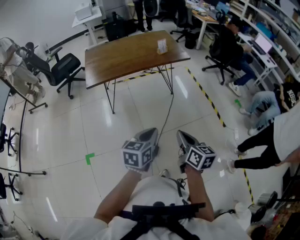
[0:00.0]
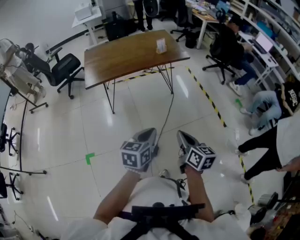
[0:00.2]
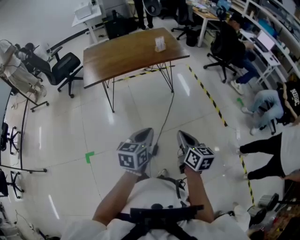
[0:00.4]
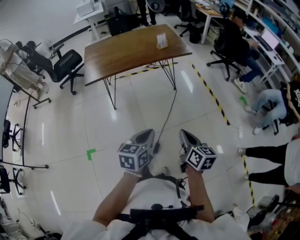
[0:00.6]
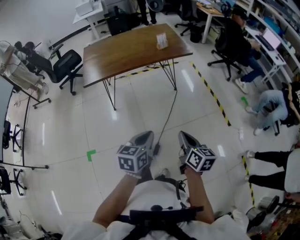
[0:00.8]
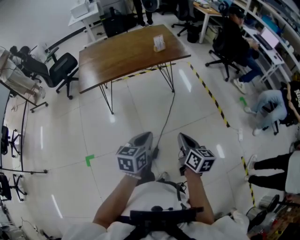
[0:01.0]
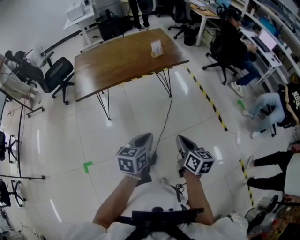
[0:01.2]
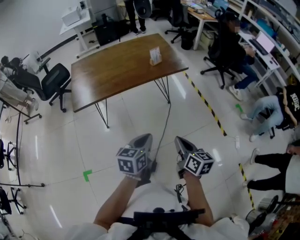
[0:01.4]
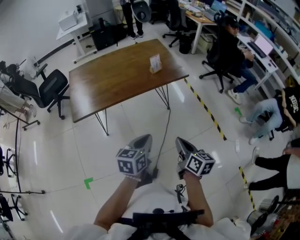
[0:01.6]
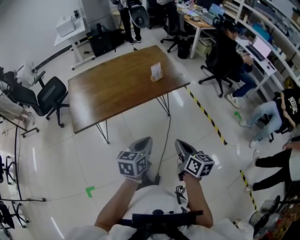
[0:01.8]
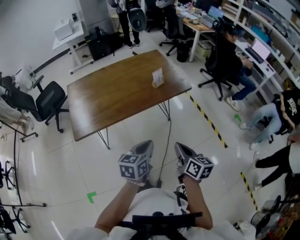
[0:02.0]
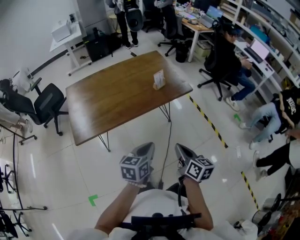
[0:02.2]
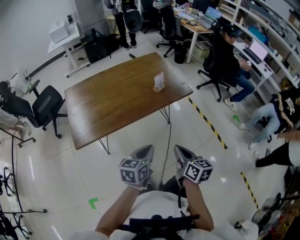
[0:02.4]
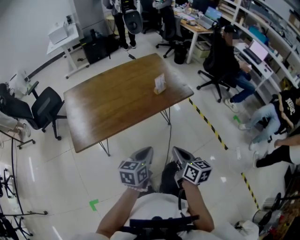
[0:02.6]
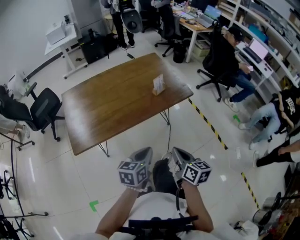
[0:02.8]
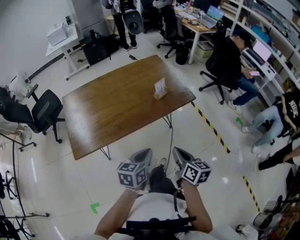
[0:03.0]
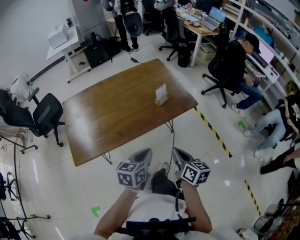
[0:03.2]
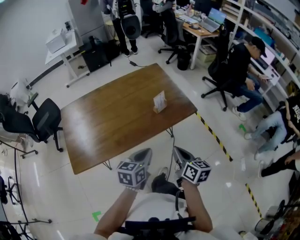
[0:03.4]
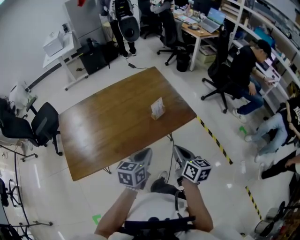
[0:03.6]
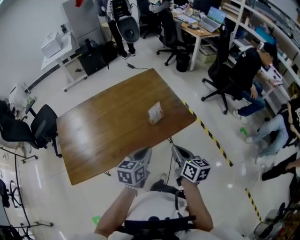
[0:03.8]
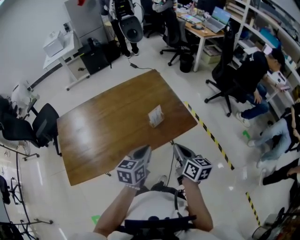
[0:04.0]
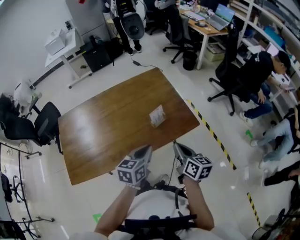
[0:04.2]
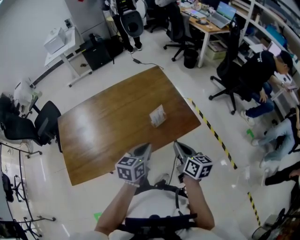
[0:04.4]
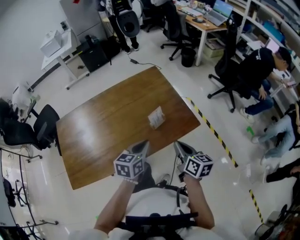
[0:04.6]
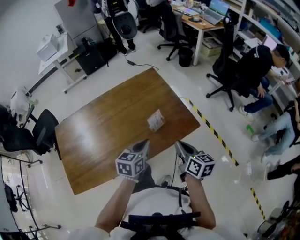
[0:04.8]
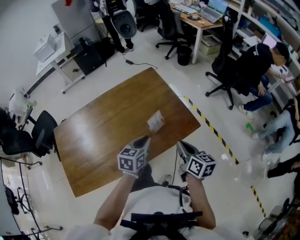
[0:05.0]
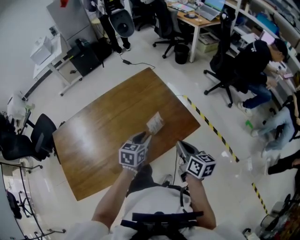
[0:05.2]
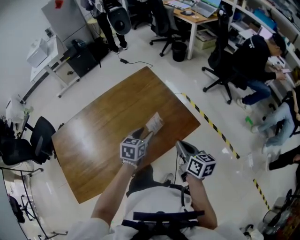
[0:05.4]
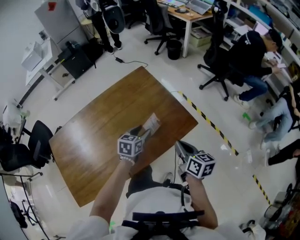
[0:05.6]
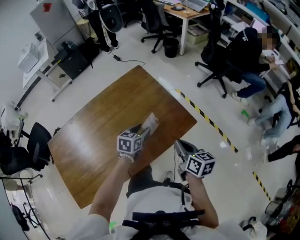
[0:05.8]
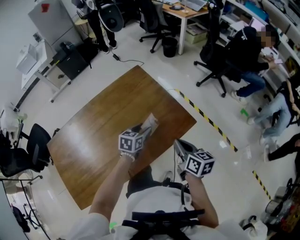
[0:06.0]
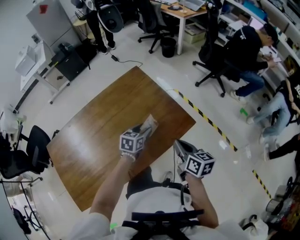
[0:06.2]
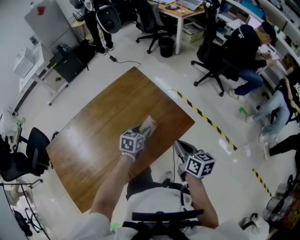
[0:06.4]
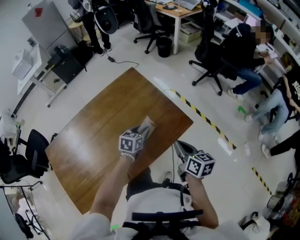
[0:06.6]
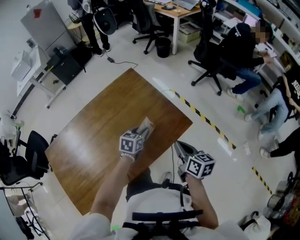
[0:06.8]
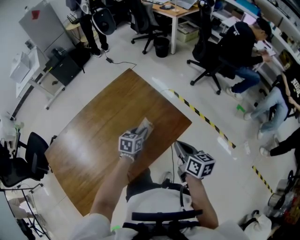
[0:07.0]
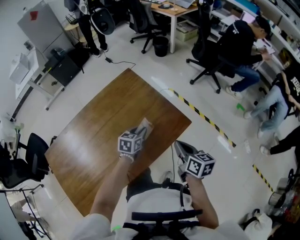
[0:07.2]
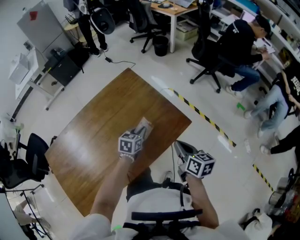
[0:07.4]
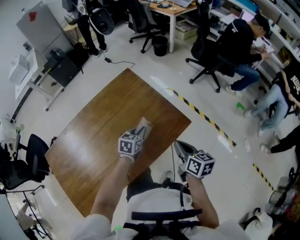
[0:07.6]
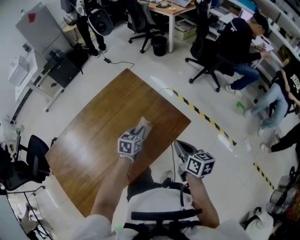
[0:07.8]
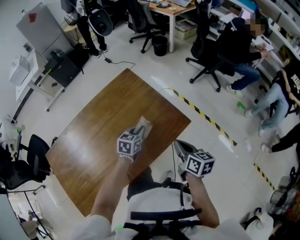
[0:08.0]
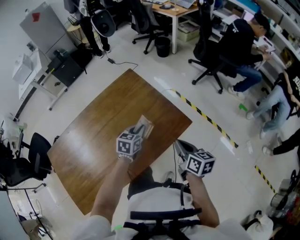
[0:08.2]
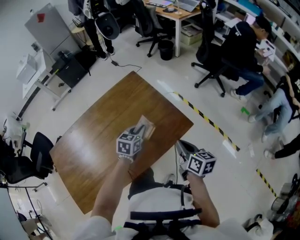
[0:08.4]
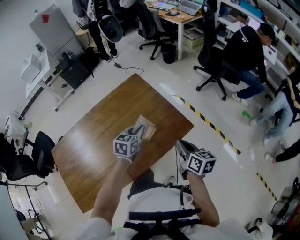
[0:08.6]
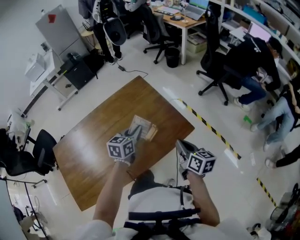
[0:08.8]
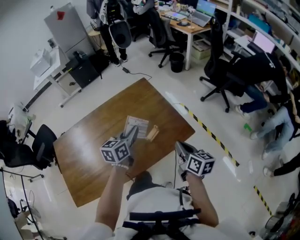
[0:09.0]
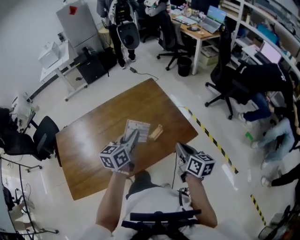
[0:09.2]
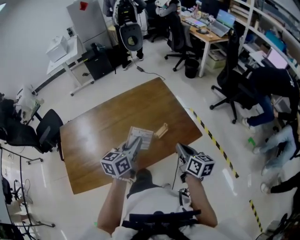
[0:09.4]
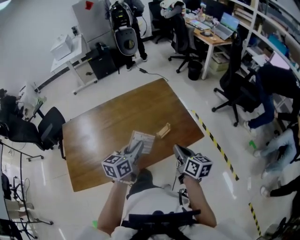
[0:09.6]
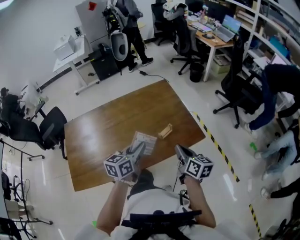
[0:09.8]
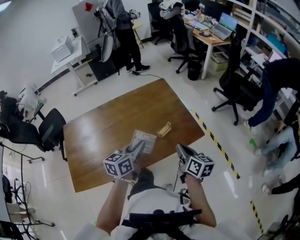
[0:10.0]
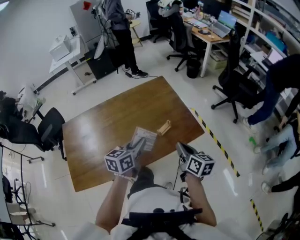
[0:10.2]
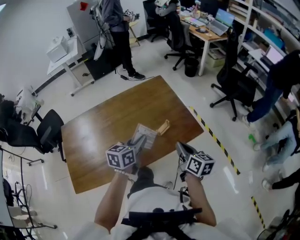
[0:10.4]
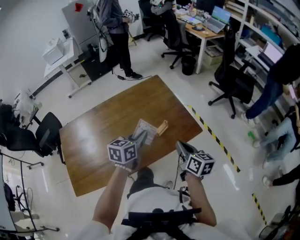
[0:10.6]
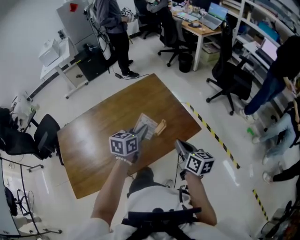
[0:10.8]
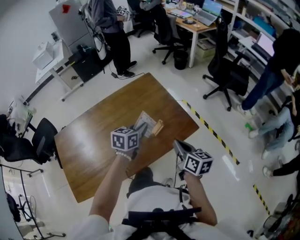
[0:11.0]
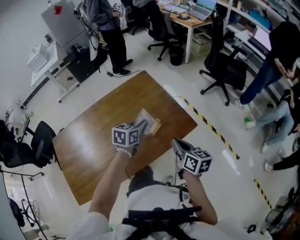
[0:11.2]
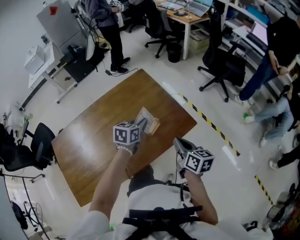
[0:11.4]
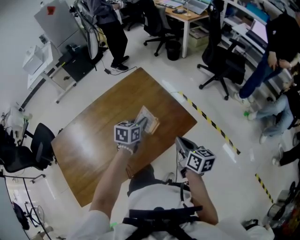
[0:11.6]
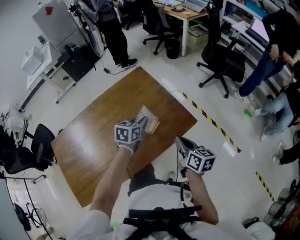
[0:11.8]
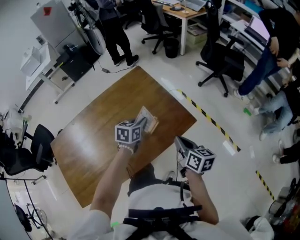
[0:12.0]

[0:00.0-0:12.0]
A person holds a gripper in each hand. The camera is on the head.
0:00.0 to 0:01.6: Both grippers travel together forward, approximately 25 cm.
0:01.6 to 0:03.0: The grippers both shift forward and to the left by some 20 cm.
0:03.0 to 0:04.4: The two grippers go roughly 25 cm forward.
0:04.4 to 0:06.0: The left gripper moves forward and downward, some 20 cm, and opens up; the right gripper is displaced forward by about 5 cm.
0:06.0 to 0:07.6: The left gripper closes.
0:07.6 to 0:09.0: The left gripper goes some 15 cm upward, and changes its angle by about 30 degrees.
0:09.0 to 0:10.4: The right gripper is displaced to the left by approximately 5 cm, while the left gripper travels backward by approximately 10 cm.
0:10.4 to 0:12.0: The left gripper goes some 20 cm forward and downward, and changes its angle by approximately 20 degrees. The right gripper moves some 5 cm.

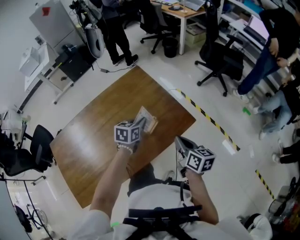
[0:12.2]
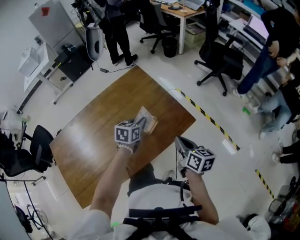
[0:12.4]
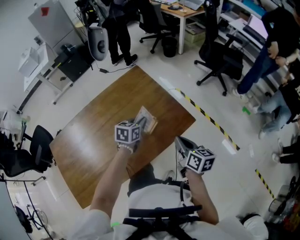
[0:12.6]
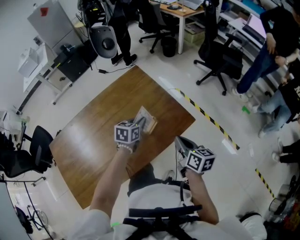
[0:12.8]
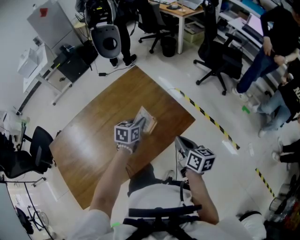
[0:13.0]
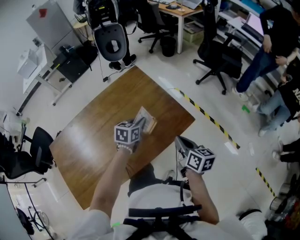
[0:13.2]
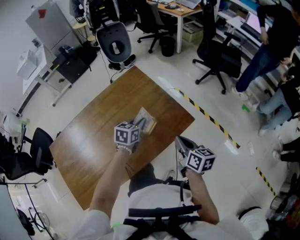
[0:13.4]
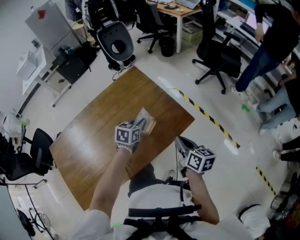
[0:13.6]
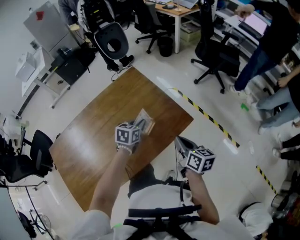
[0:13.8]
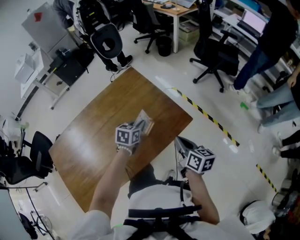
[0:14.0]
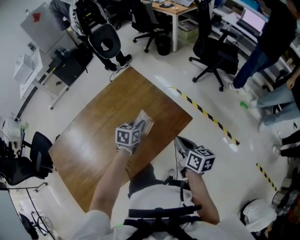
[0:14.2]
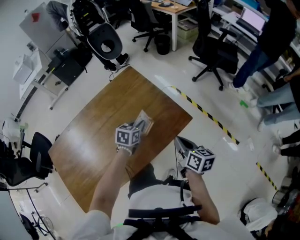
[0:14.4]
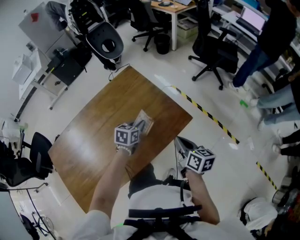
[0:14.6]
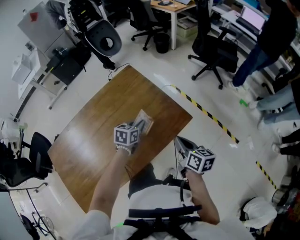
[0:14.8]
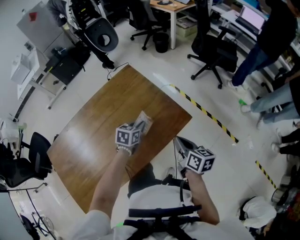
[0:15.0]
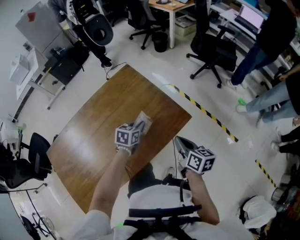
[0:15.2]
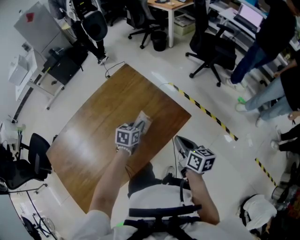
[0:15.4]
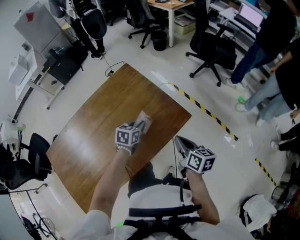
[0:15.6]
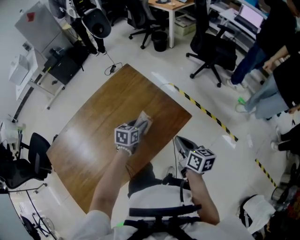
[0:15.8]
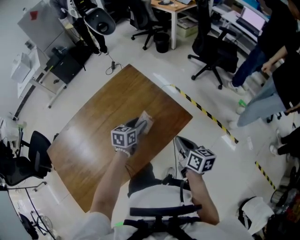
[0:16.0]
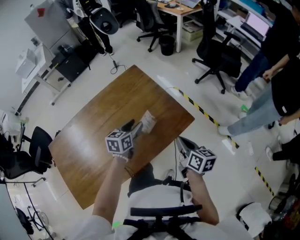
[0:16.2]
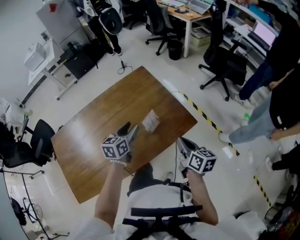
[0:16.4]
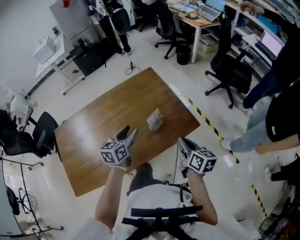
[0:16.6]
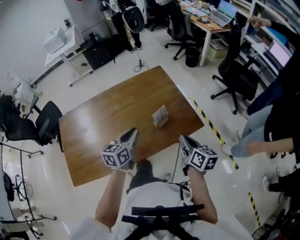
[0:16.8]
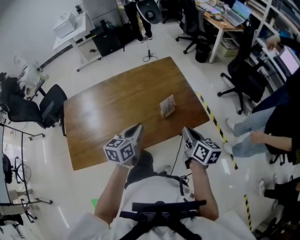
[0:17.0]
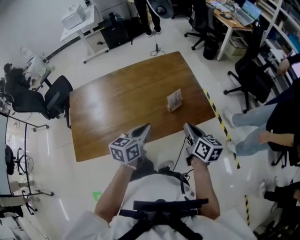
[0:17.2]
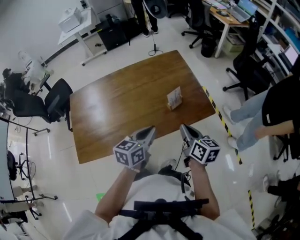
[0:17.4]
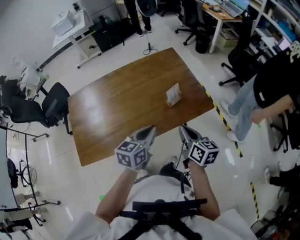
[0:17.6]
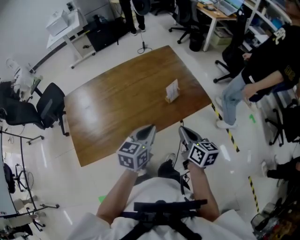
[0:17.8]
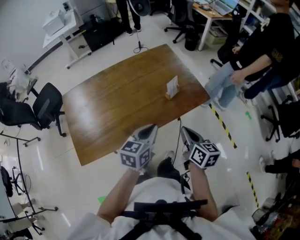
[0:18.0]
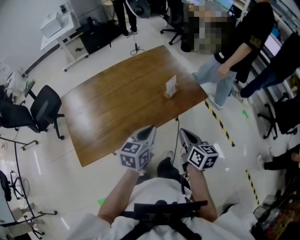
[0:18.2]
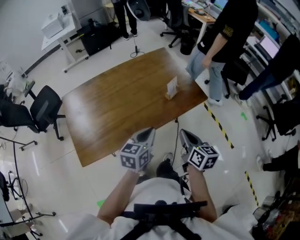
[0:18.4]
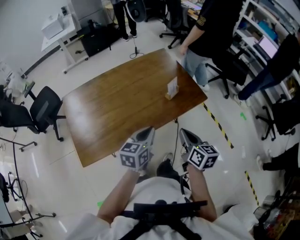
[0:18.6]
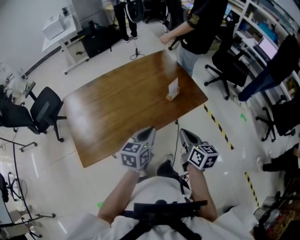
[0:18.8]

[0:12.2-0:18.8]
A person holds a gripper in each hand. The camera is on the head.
0:12.2 to 0:15.4: There are only small adjustments of the grippers.
0:15.4 to 0:17.2: The left gripper travels backward and upward by some 25 cm, rotates some 40 degrees, and opens and closes again. Meanwhile the right gripper heads to the left and upward, covering some 10 cm, and swivels approximately 20 degrees.
0:17.2 to 0:18.8: The two grippers go some 15 cm backward and to the left.

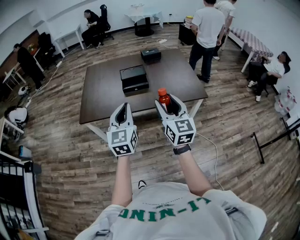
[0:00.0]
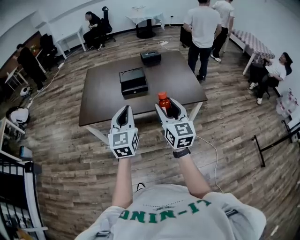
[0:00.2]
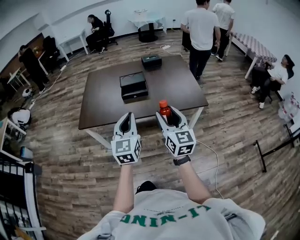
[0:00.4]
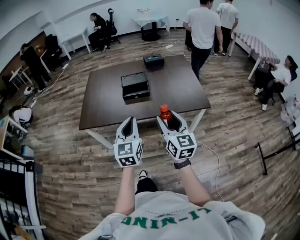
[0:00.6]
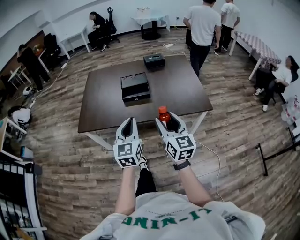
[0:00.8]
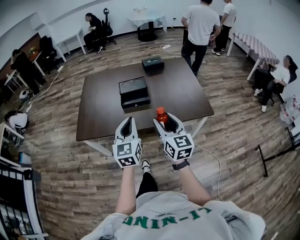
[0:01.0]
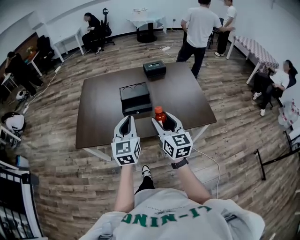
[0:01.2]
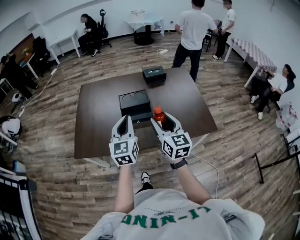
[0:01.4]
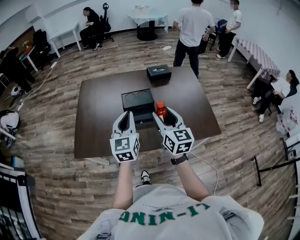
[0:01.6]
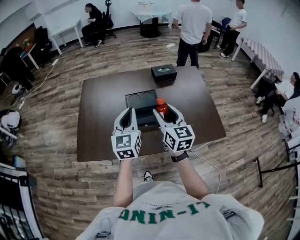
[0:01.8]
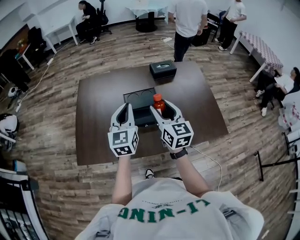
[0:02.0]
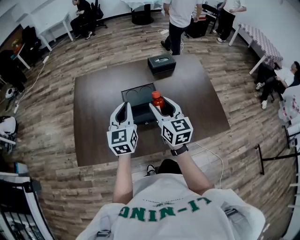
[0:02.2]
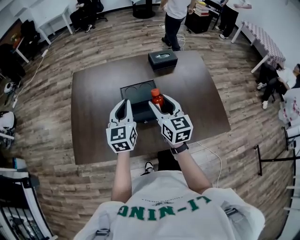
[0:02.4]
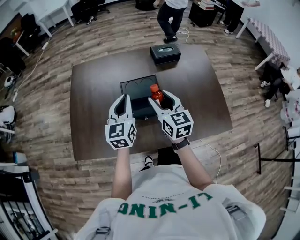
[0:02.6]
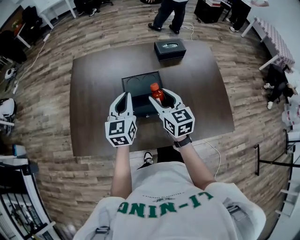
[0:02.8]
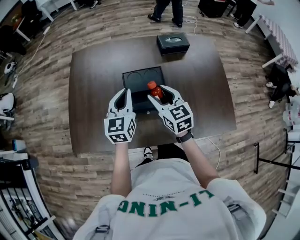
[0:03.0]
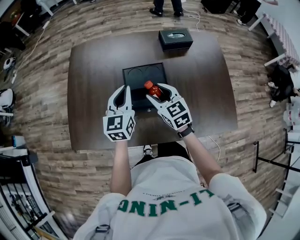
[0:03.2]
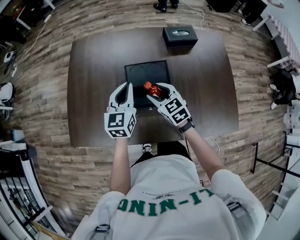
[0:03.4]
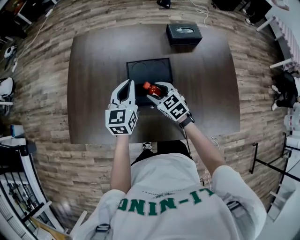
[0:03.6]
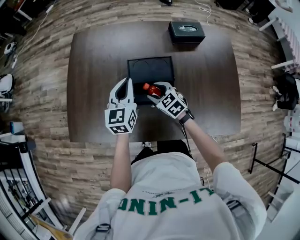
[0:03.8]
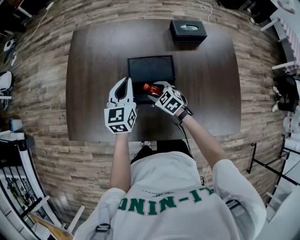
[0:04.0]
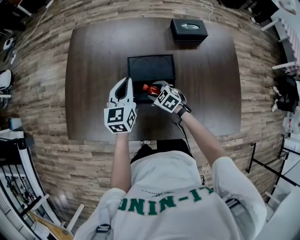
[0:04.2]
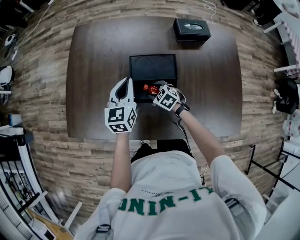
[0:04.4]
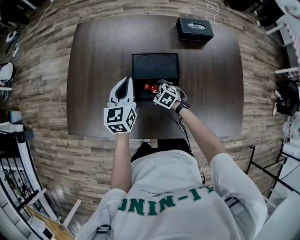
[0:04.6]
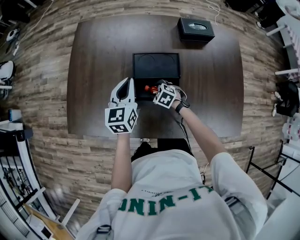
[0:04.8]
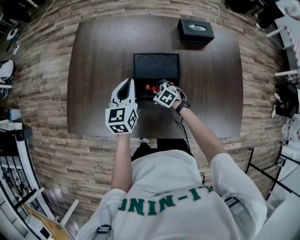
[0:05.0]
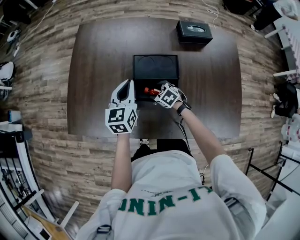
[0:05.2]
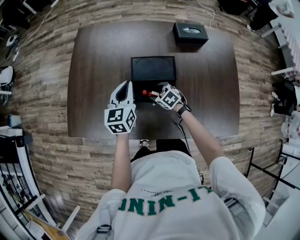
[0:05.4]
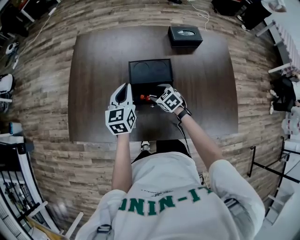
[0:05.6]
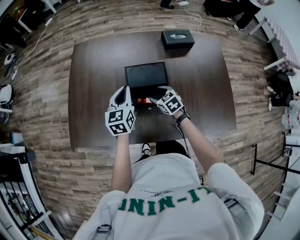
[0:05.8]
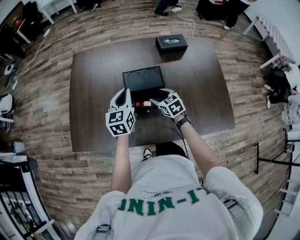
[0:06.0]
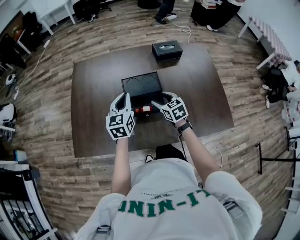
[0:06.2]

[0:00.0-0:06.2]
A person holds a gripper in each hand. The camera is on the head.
0:00.0 to 0:01.6: The two grippers go some 35 cm forward.
0:01.6 to 0:03.2: The grippers both shift forward and downward by about 30 cm. The right gripper swivels roughly 30 degrees.
0:03.2 to 0:04.6: The left gripper moves downward, some 5 cm. The right gripper heads downward, covering some 25 cm, and points its fingers approximately 30 degrees further downward.
0:04.6 to 0:06.2: The right gripper shifts roughly 20 cm upward, and changes its angle by approximately 40 degrees, while the left gripper heads backward and upward, covering some 10 cm.
